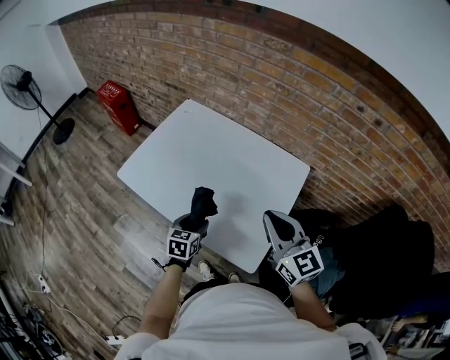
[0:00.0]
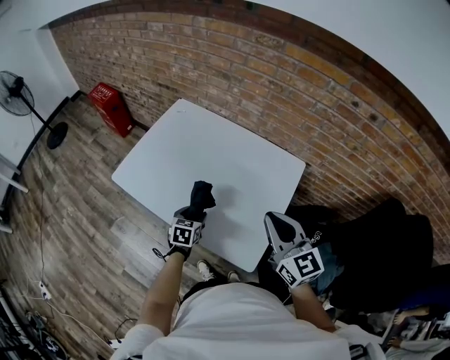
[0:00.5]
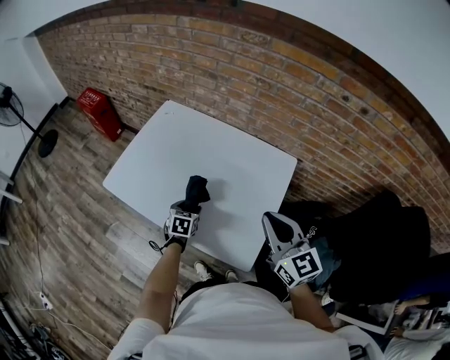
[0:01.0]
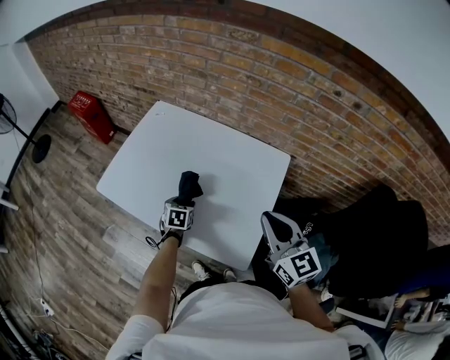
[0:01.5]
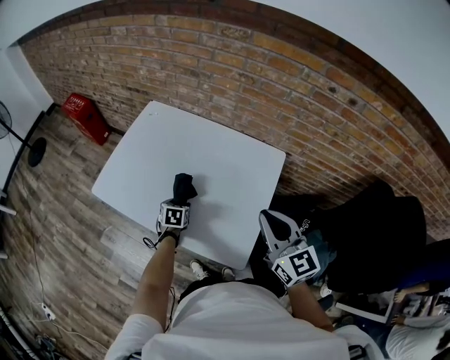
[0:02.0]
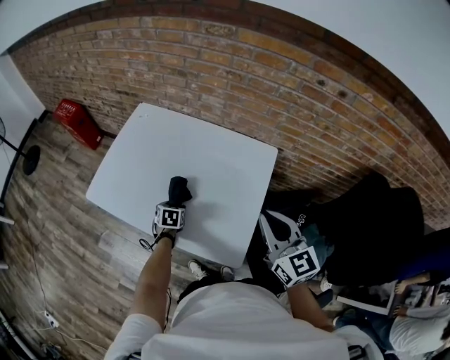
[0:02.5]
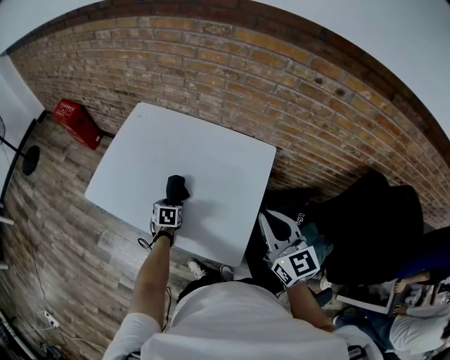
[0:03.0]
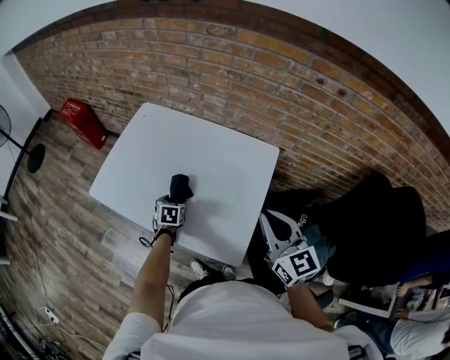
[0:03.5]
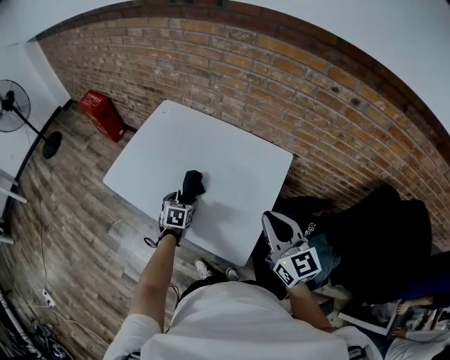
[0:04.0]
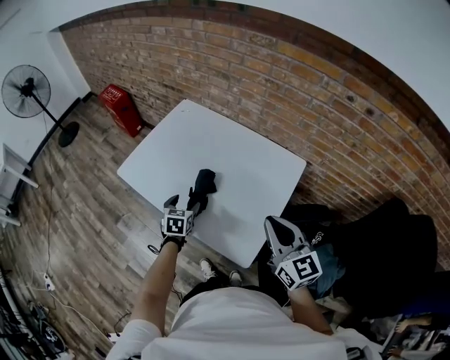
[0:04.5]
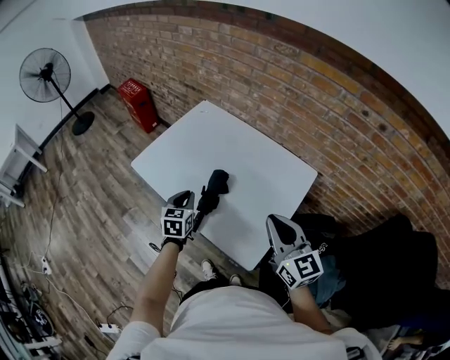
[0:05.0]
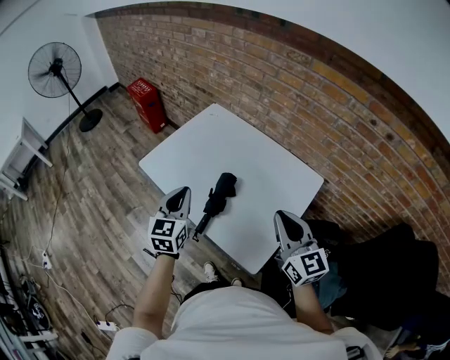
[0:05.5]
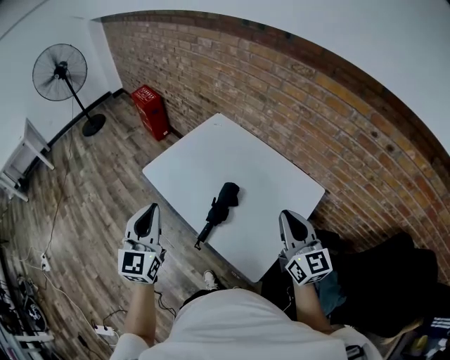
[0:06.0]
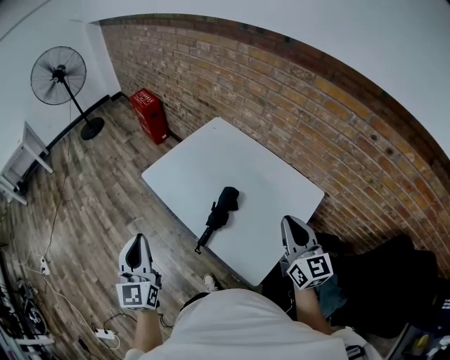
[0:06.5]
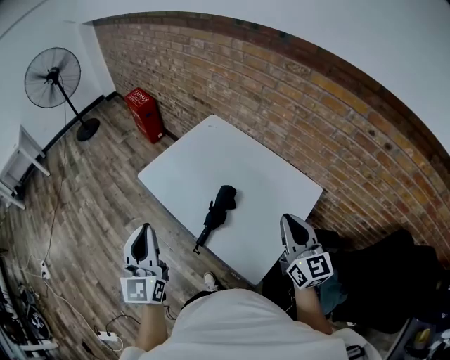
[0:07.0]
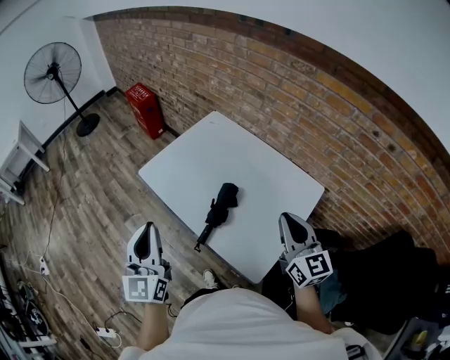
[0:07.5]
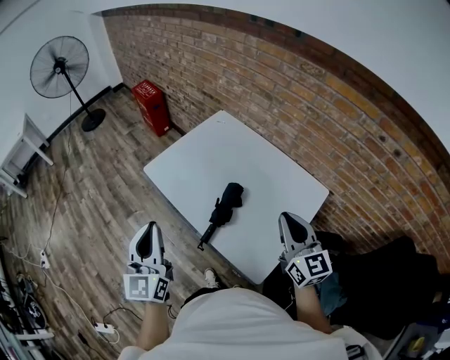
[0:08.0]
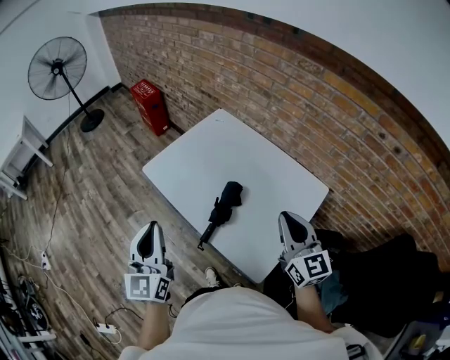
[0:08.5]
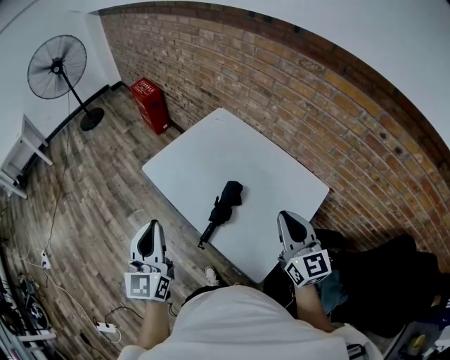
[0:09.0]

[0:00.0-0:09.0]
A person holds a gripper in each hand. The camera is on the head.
0:00.0 to 0:02.0: The left gripper shifts roughly 15 cm forward and downward. The right gripper shifts roughly 5 cm to the right.
0:02.0 to 0:04.5: The left gripper shifts roughly 5 cm upward.
0:04.5 to 0:07.0: The right gripper heads forward, covering roughly 5 cm. Meanwhile the left gripper goes approximately 35 cm upward, to the left and backward, points its fingers roughly 50 degrees further upward, and closes.
0:07.0 to 0:09.0: The grippers make only small movements.

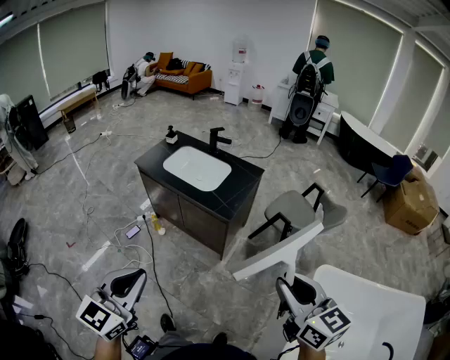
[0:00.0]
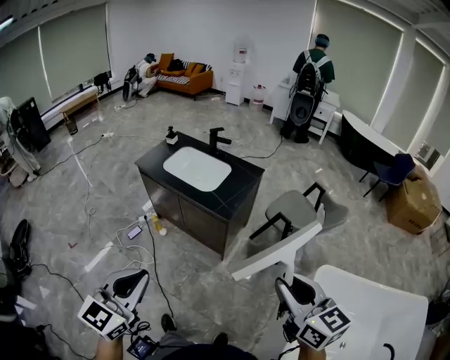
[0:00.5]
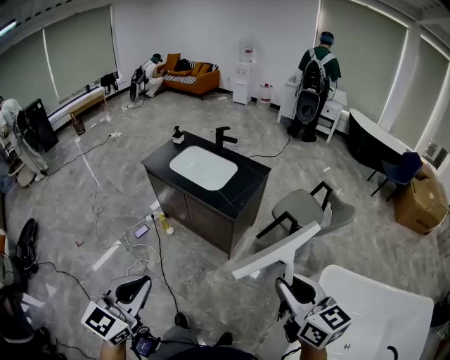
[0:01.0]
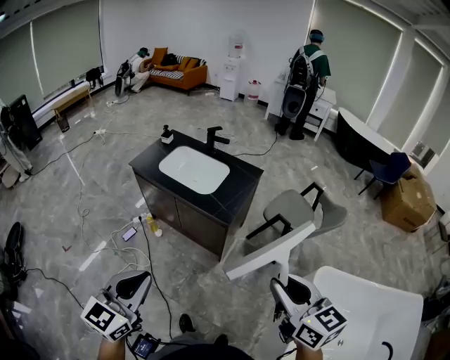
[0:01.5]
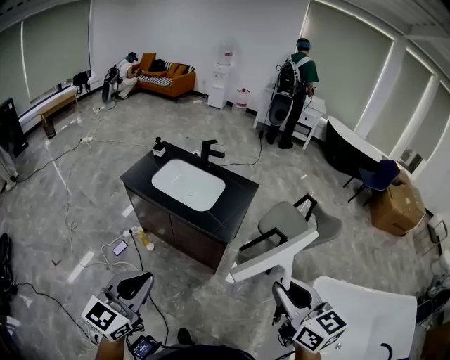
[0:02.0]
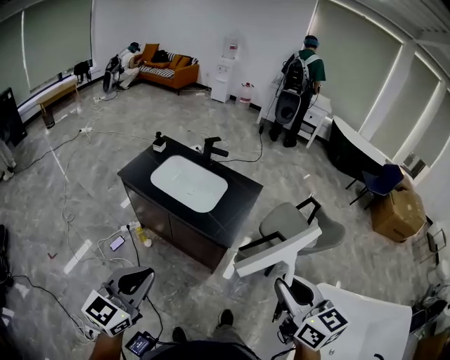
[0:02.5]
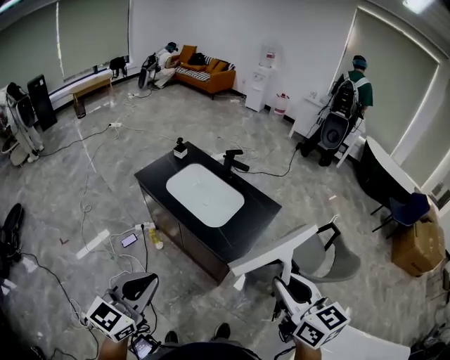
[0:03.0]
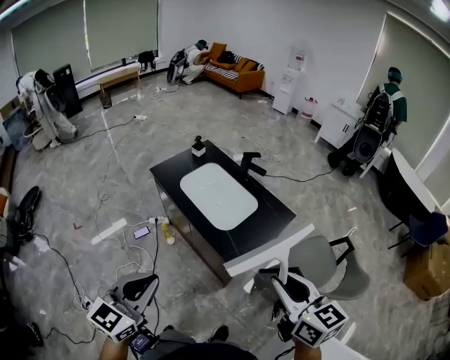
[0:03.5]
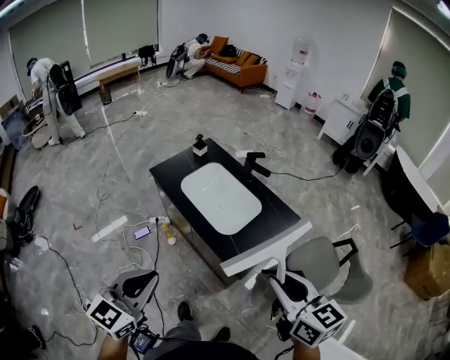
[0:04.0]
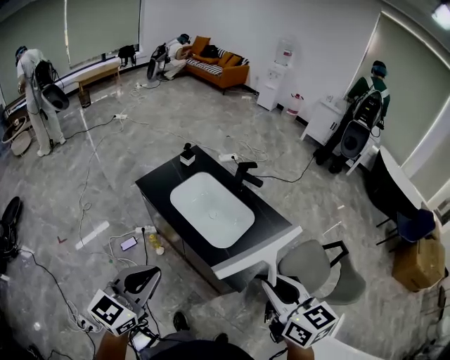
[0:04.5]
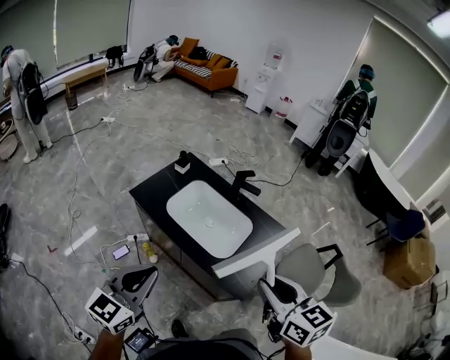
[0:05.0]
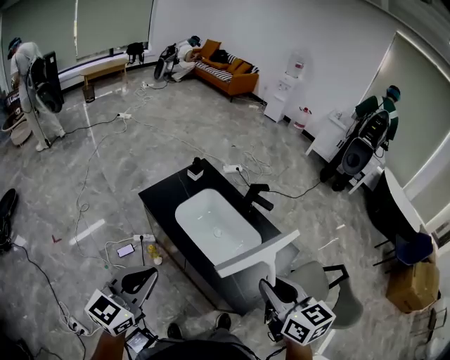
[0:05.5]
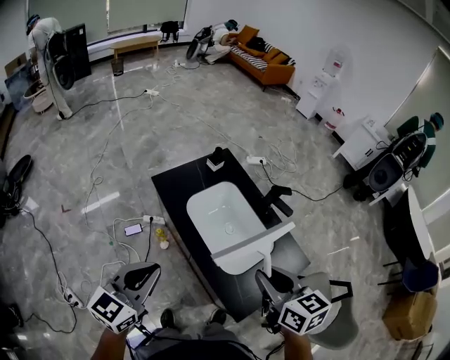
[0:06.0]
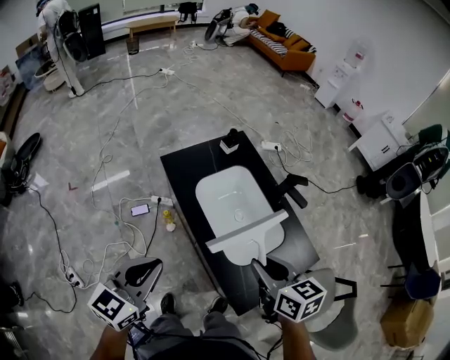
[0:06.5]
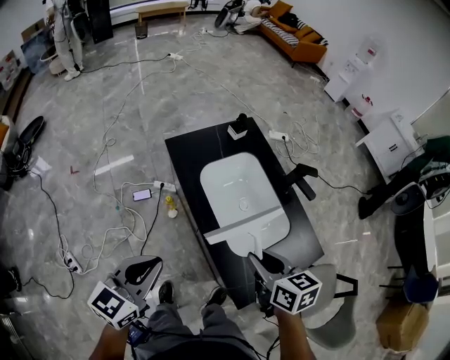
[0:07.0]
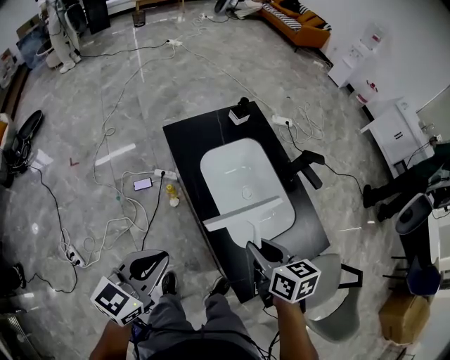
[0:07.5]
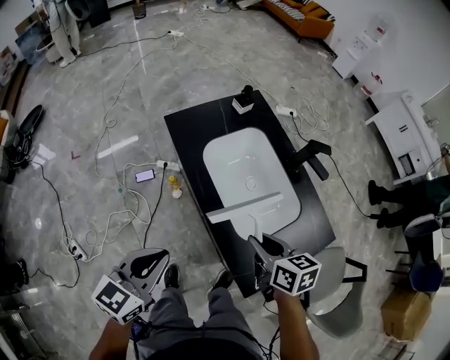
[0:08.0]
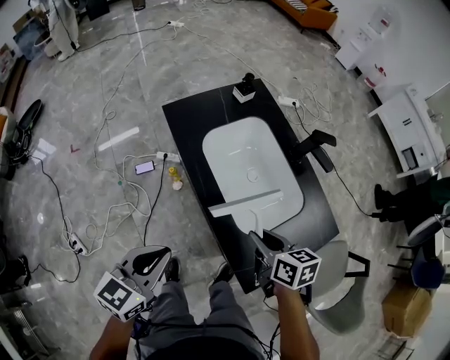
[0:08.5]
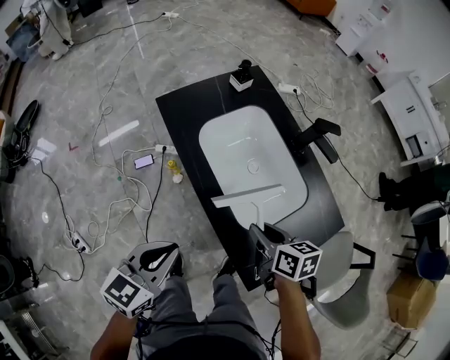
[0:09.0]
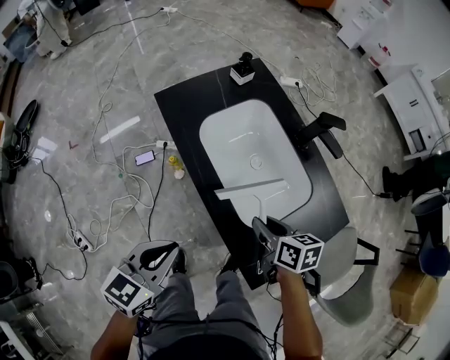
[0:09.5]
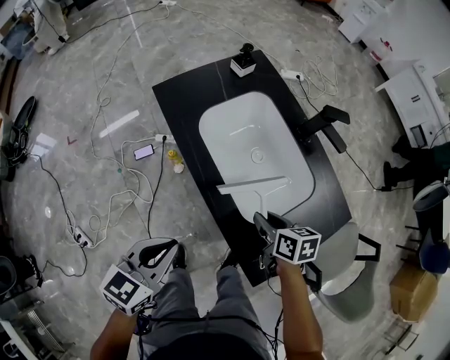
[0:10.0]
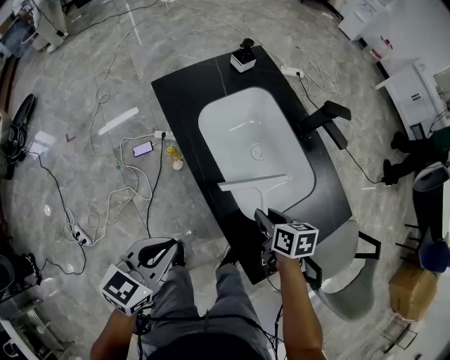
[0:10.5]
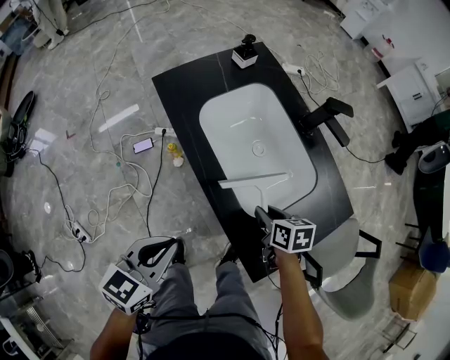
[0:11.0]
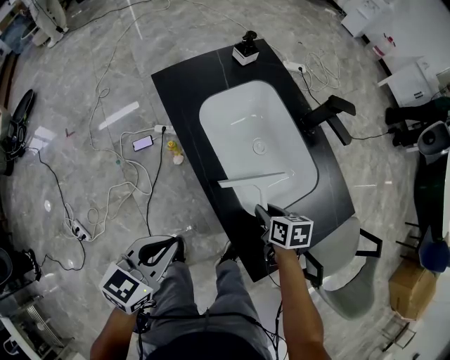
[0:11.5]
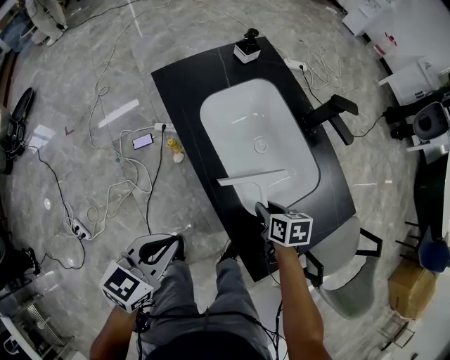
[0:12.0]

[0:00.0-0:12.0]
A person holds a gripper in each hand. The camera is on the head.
0:00.0 to 0:02.0: The right gripper goes roughly 15 cm forward and to the left. The left gripper travels forward by roughly 15 cm.
0:02.0 to 0:04.0: The right gripper travels forward by roughly 30 cm, and changes its angle by about 20 degrees, while the left gripper heads forward, covering approximately 20 cm, and changes its angle by roughly 20 degrees.
0:04.0 to 0:06.0: The left gripper goes about 25 cm forward. The right gripper travels forward and to the left by some 30 cm.
0:06.0 to 0:08.0: The left gripper is displaced downward by some 15 cm. Meanwhile the right gripper heads downward, covering some 20 cm.
0:08.0 to 0:10.0: The left gripper goes some 10 cm downward, while the right gripper shifts about 15 cm downward.
0:10.0 to 0:12.0: The right gripper shifts approximately 5 cm downward.

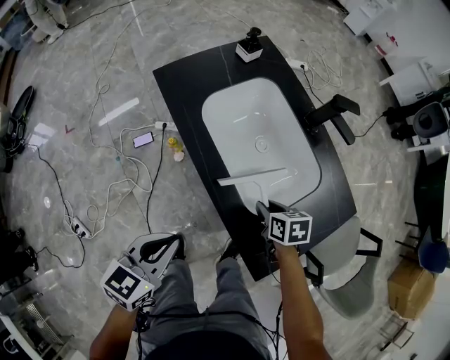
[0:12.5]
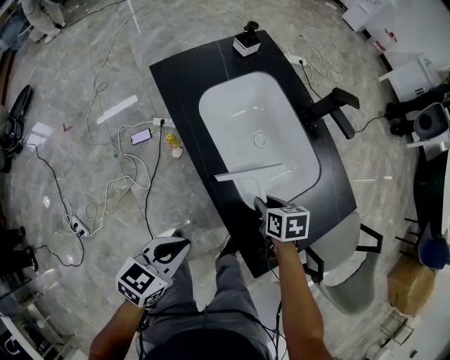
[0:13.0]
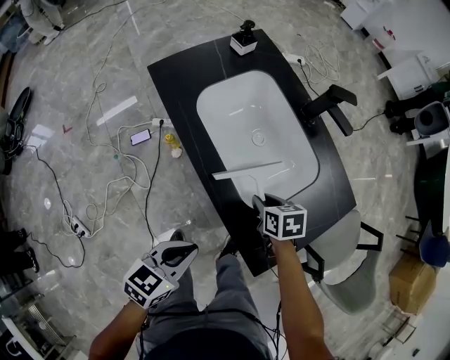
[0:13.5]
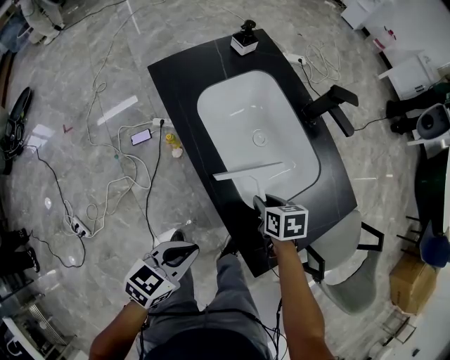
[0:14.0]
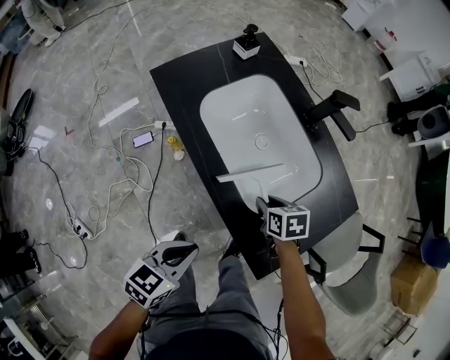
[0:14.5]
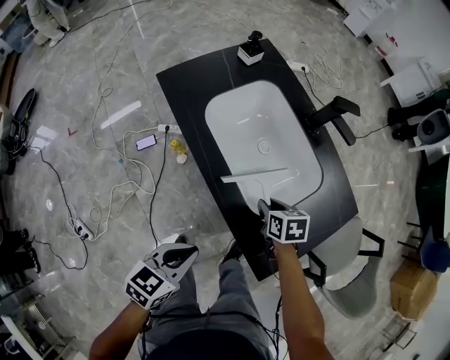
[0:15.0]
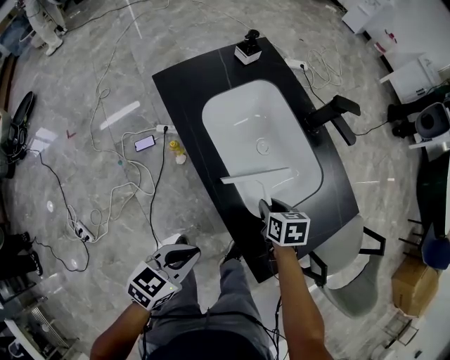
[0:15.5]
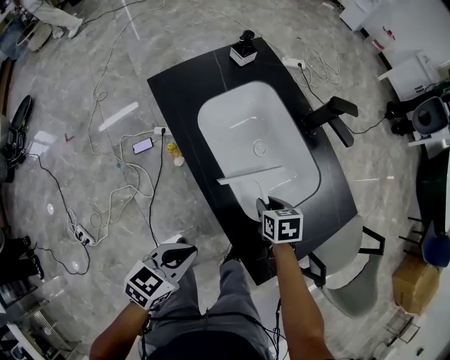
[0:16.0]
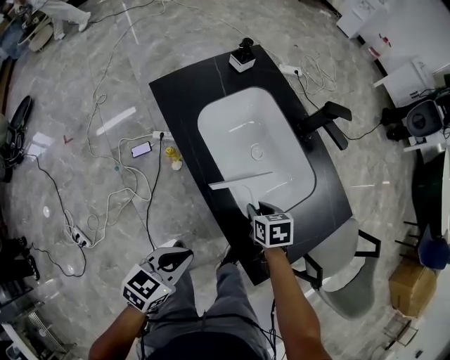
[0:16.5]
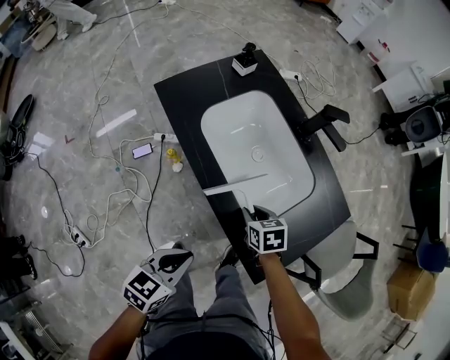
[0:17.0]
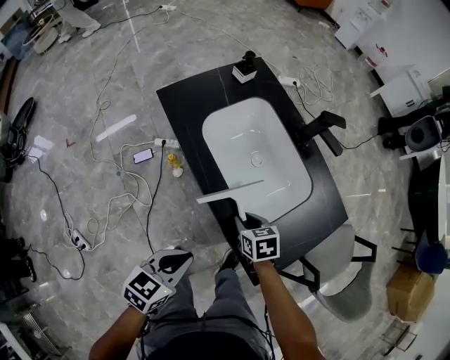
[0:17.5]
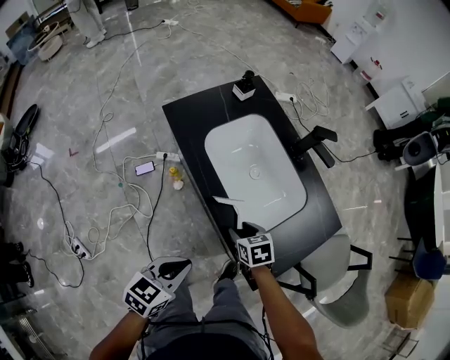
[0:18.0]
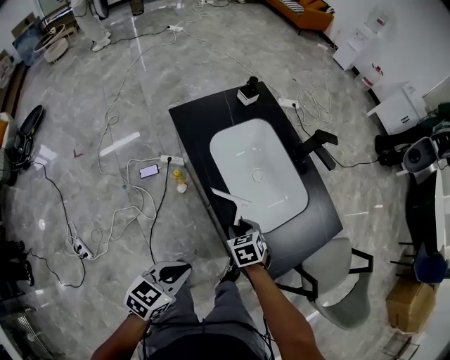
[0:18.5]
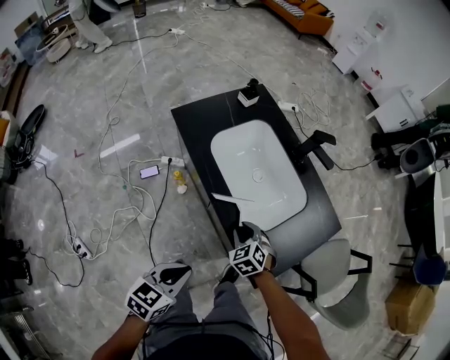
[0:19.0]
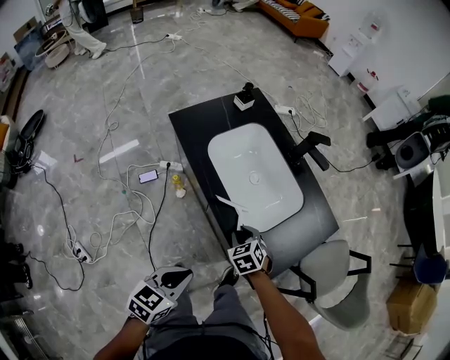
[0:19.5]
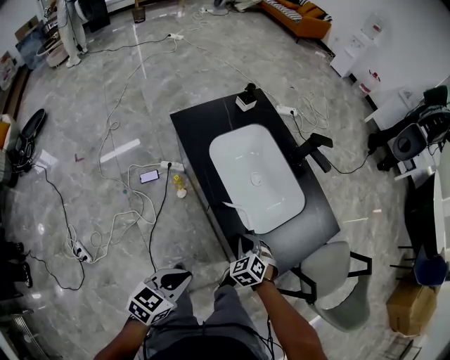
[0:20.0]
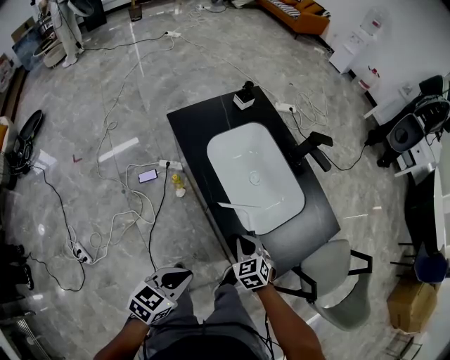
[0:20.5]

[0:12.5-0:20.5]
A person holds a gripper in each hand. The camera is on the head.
0:12.5 to 0:14.5: The left gripper shifts about 5 cm downward.
0:14.5 to 0:16.5: The grippers make only small movements.
0:16.5 to 0:18.5: The left gripper heads backward and upward, covering approximately 5 cm, while the right gripper shifts approximately 10 cm to the left and backward, and turns by approximately 20 degrees.
0:18.5 to 0:20.5: The right gripper shifts by approximately 5 cm, and closes.
